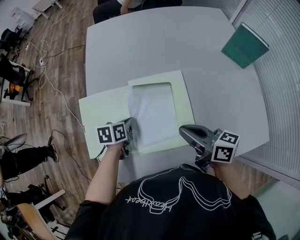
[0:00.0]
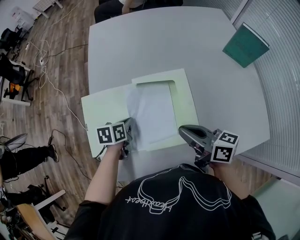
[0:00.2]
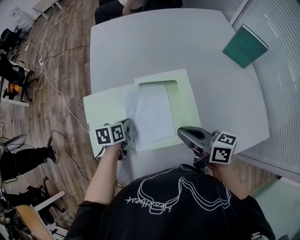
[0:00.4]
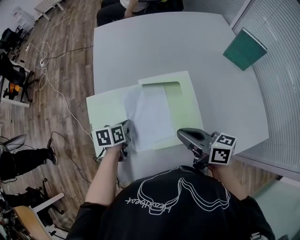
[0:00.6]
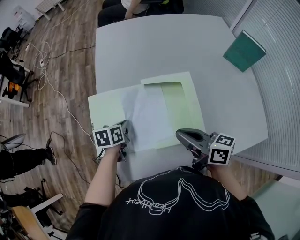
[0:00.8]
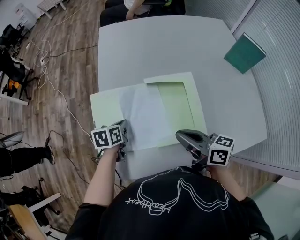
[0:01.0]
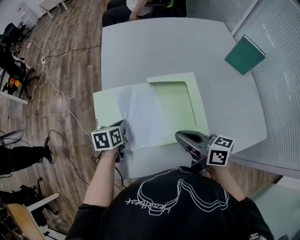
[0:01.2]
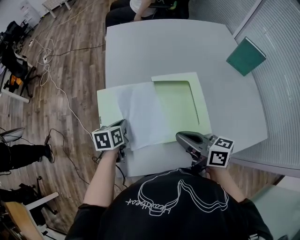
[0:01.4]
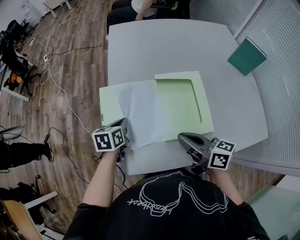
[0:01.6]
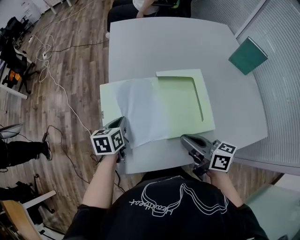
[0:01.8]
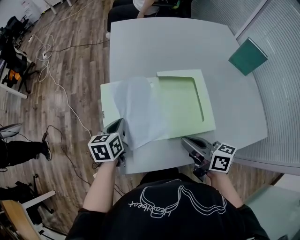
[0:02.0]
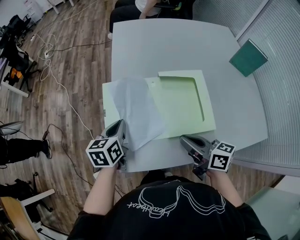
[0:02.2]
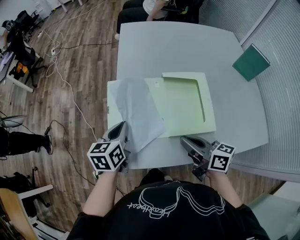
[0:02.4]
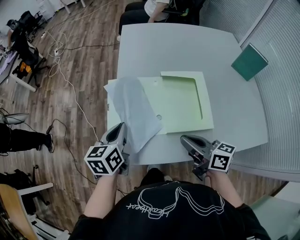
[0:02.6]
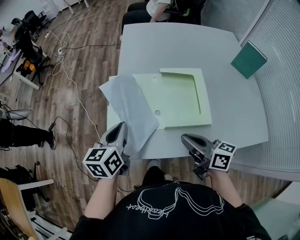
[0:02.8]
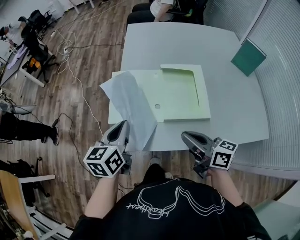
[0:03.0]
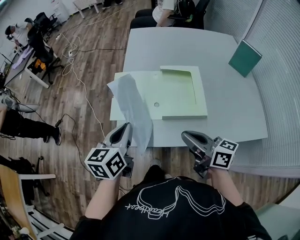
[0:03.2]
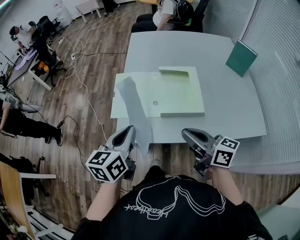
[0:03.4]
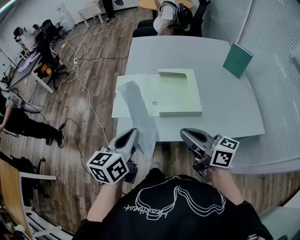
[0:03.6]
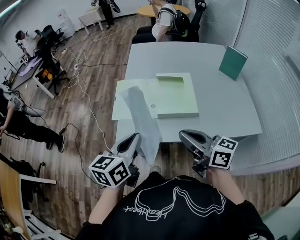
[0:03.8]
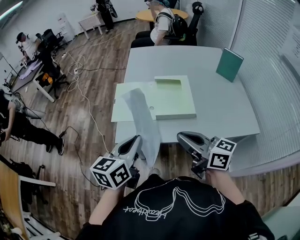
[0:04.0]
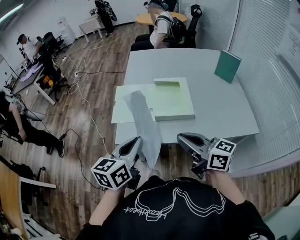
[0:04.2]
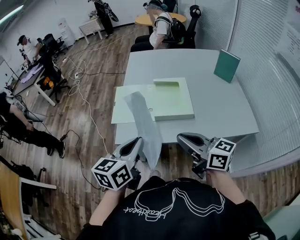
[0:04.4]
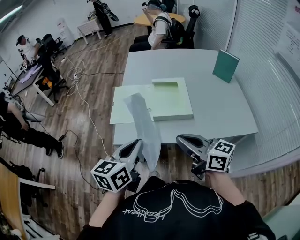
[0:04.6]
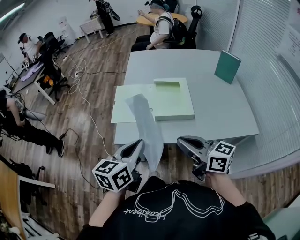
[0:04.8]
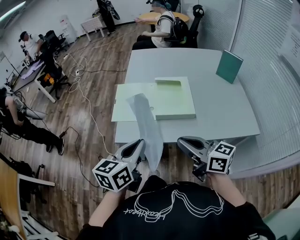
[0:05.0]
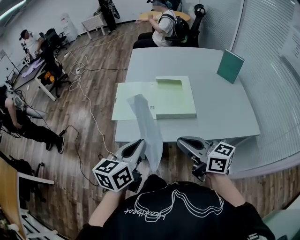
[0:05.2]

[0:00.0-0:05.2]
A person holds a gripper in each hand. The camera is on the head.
0:00.0 to 0:01.8: The left gripper is displaced to the left and upward by approximately 15 cm. Meanwhile the right gripper shifts roughly 15 cm to the left and backward.
0:01.8 to 0:03.4: The left gripper travels backward and upward by approximately 30 cm, and rotates approximately 20 degrees. Meanwhile the right gripper travels backward and upward by about 15 cm.
0:03.4 to 0:05.2: The grippers both shift backward by approximately 10 cm.

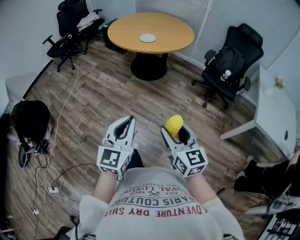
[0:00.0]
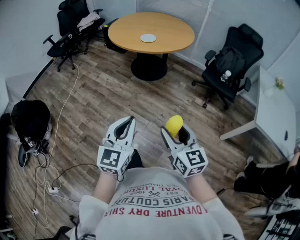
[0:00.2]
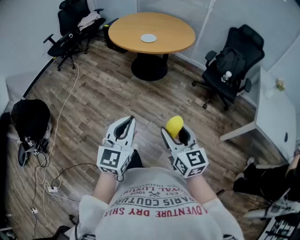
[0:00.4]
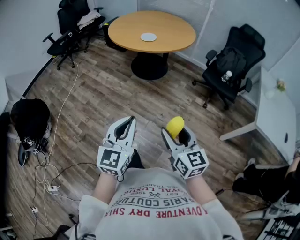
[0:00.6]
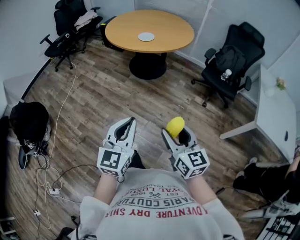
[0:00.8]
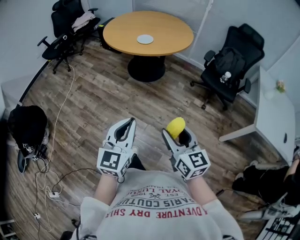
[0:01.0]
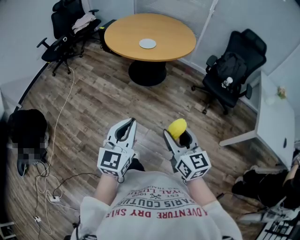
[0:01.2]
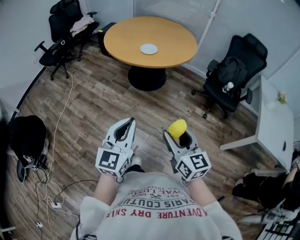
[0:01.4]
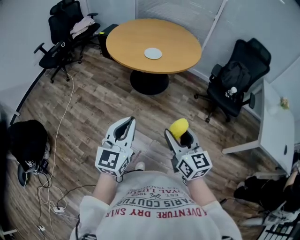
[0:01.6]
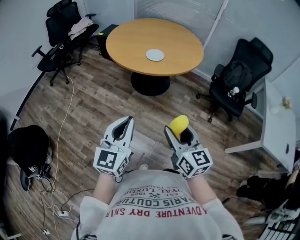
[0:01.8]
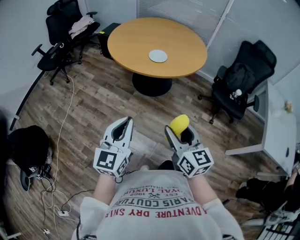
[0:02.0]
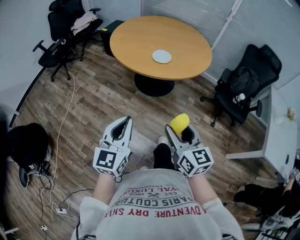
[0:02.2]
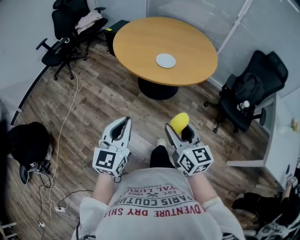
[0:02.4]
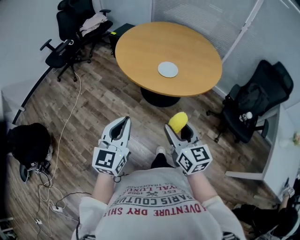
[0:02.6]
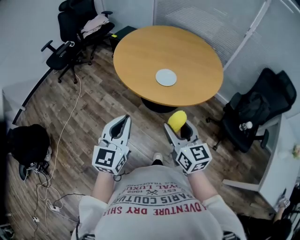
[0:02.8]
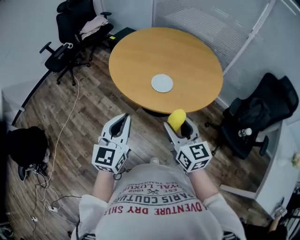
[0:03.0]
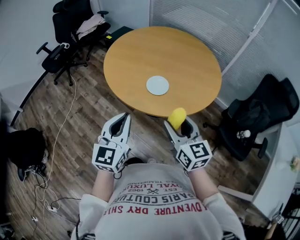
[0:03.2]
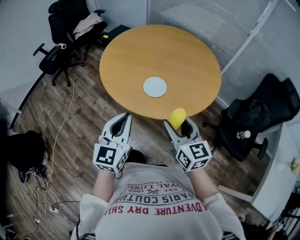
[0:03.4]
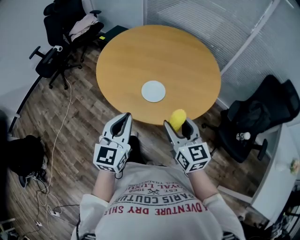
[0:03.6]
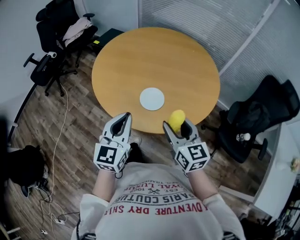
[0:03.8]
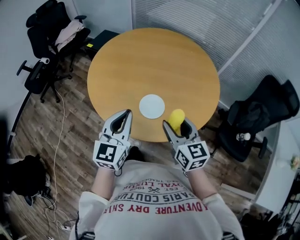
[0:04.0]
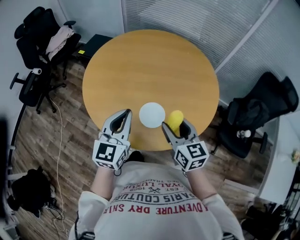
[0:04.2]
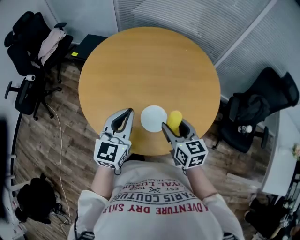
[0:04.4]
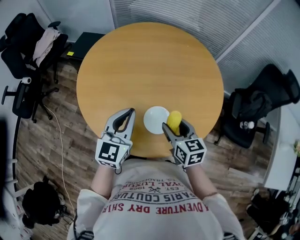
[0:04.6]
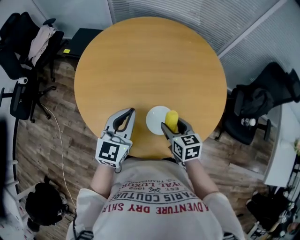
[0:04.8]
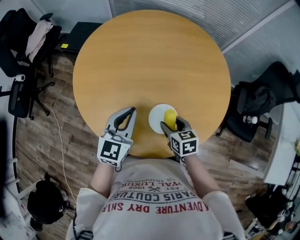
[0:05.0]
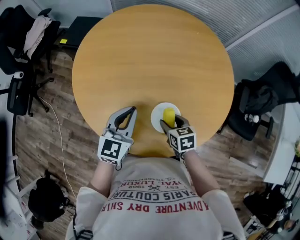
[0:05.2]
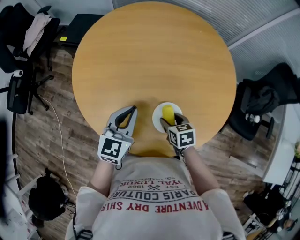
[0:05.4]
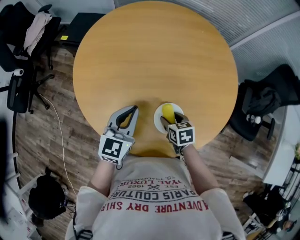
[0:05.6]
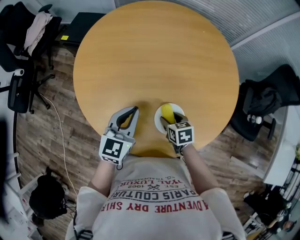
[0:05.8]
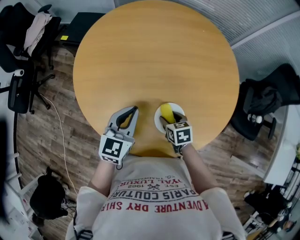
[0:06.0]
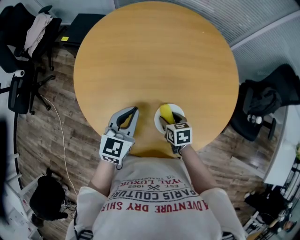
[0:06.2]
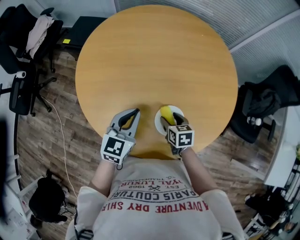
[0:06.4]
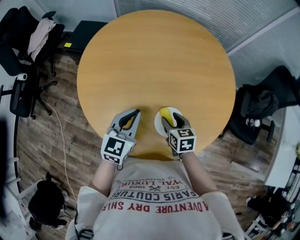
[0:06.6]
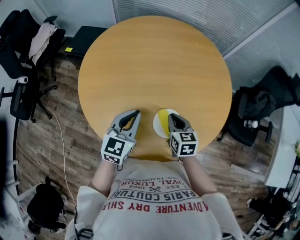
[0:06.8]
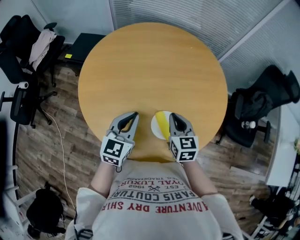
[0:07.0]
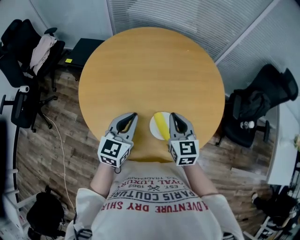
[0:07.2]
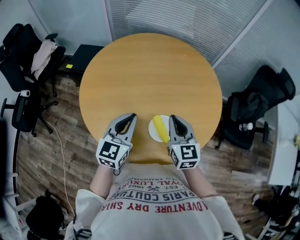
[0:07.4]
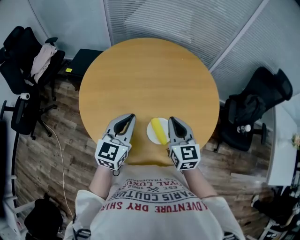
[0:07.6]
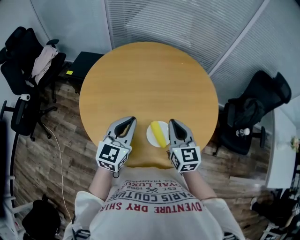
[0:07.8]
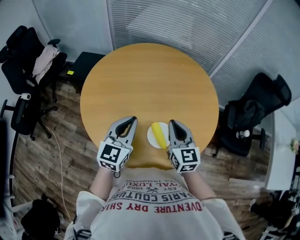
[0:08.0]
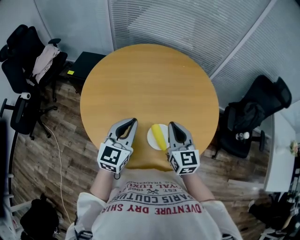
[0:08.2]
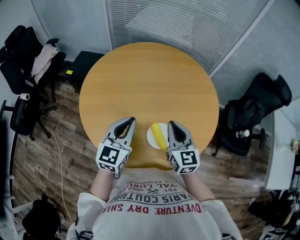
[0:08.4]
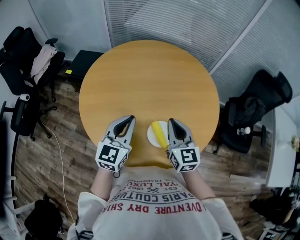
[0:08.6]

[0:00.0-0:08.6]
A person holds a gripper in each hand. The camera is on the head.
0:00.0 to 0:01.4: Both grippers travel together forward, some 15 cm.
0:01.4 to 0:02.8: The grippers both shift forward by approximately 35 cm.
0:02.8 to 0:04.4: Both grippers move forward, some 35 cm. The right gripper swivels approximately 20 degrees.
0:04.4 to 0:05.8: The left gripper shifts approximately 15 cm downward and forward. The right gripper moves downward, roughly 25 cm, and points its fingers roughly 30 degrees further downward.
0:05.8 to 0:07.2: The right gripper shifts about 20 cm upward, angles its fingers upward, by some 40 degrees, and closes. The left gripper heads upward, covering approximately 5 cm.
0:07.2 to 0:08.6: The left gripper heads upward, covering approximately 5 cm.

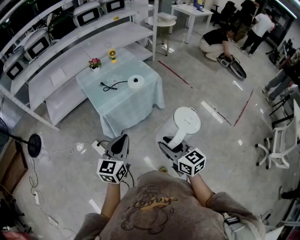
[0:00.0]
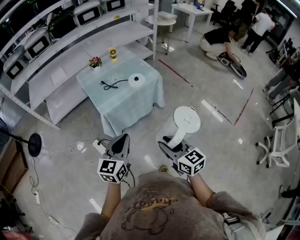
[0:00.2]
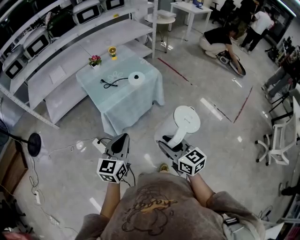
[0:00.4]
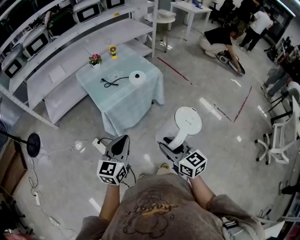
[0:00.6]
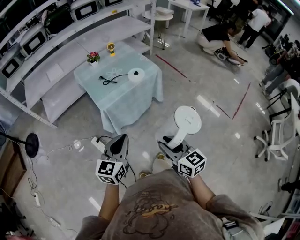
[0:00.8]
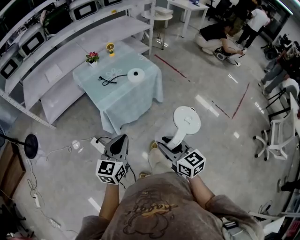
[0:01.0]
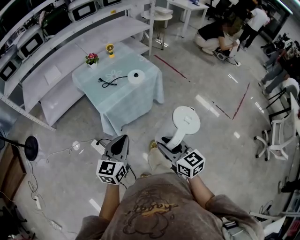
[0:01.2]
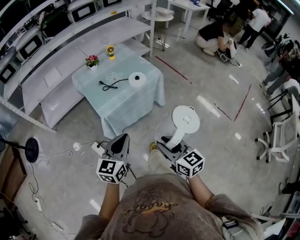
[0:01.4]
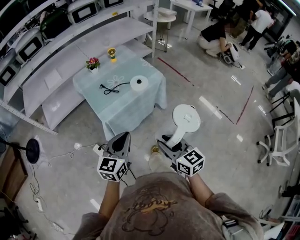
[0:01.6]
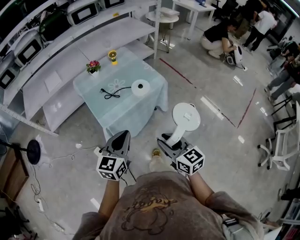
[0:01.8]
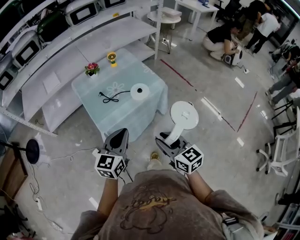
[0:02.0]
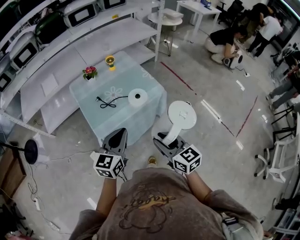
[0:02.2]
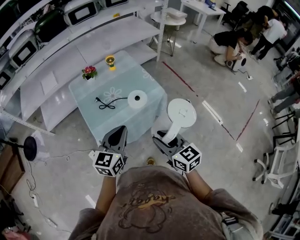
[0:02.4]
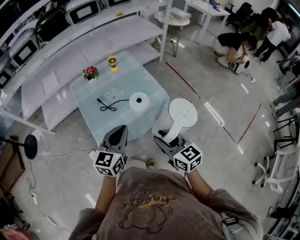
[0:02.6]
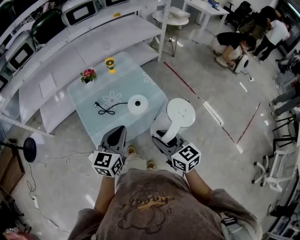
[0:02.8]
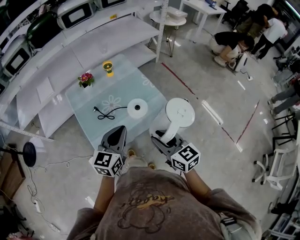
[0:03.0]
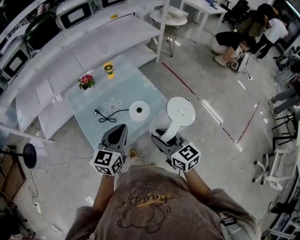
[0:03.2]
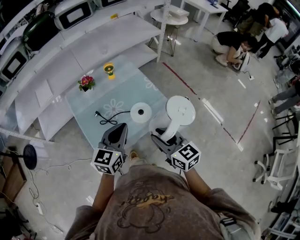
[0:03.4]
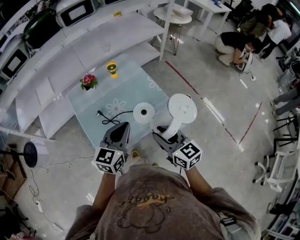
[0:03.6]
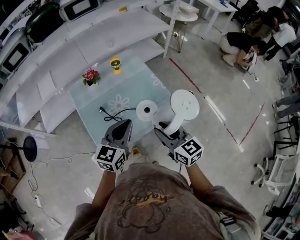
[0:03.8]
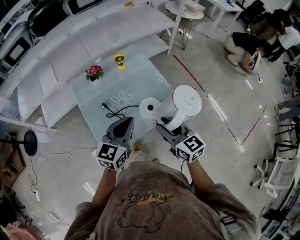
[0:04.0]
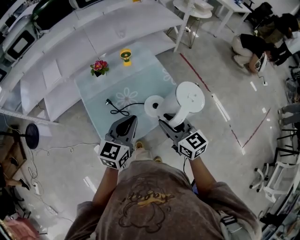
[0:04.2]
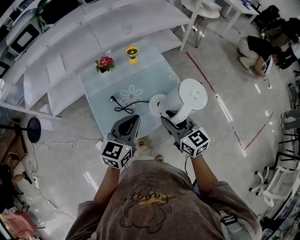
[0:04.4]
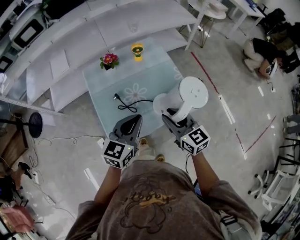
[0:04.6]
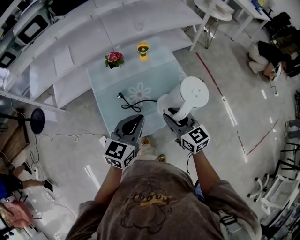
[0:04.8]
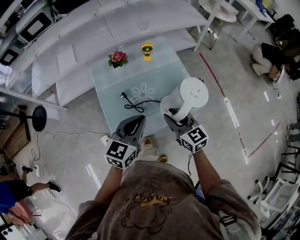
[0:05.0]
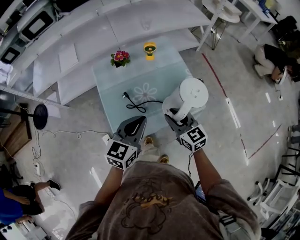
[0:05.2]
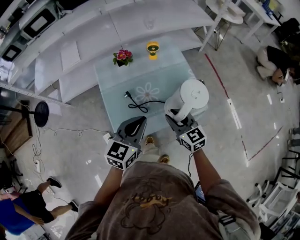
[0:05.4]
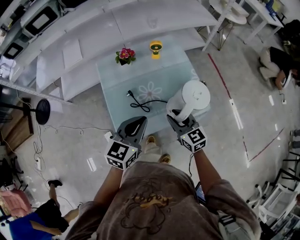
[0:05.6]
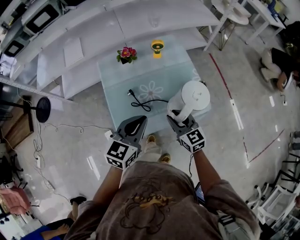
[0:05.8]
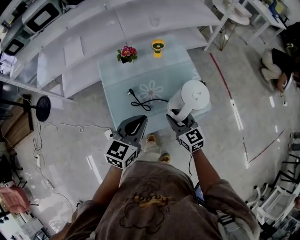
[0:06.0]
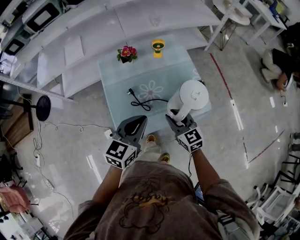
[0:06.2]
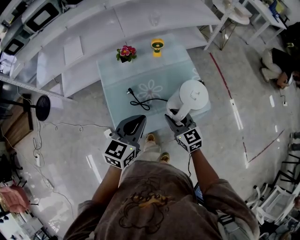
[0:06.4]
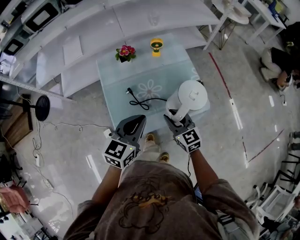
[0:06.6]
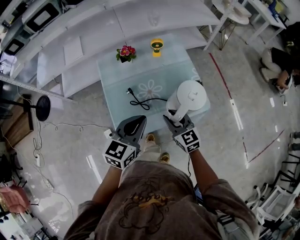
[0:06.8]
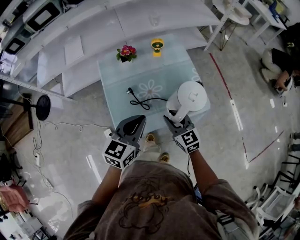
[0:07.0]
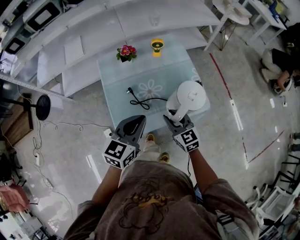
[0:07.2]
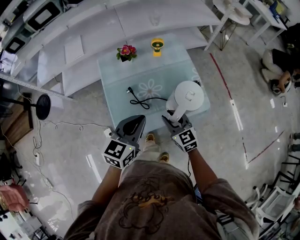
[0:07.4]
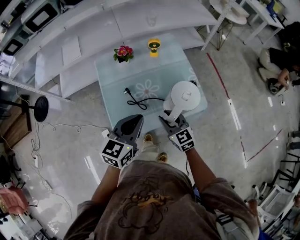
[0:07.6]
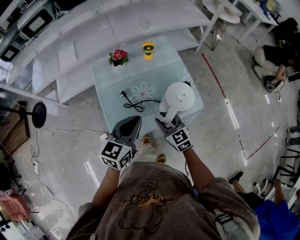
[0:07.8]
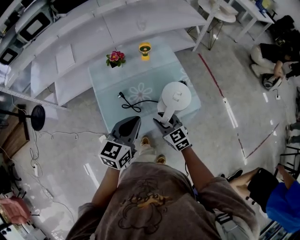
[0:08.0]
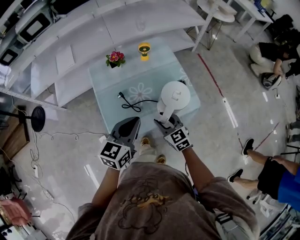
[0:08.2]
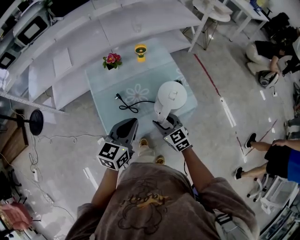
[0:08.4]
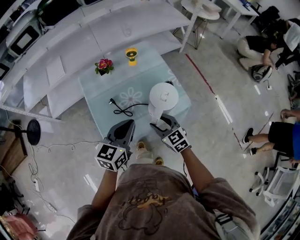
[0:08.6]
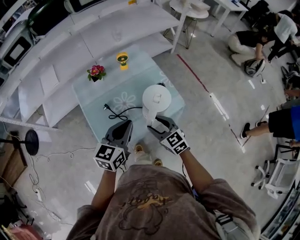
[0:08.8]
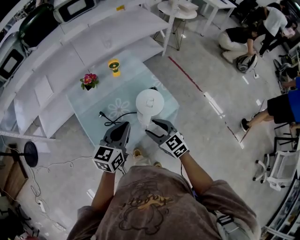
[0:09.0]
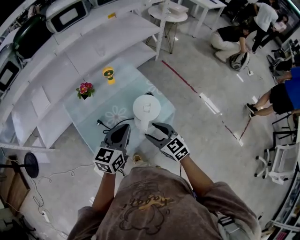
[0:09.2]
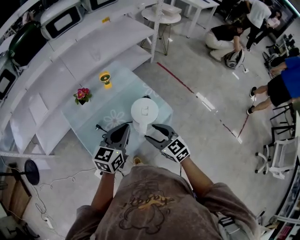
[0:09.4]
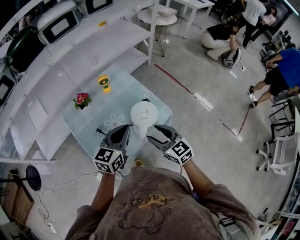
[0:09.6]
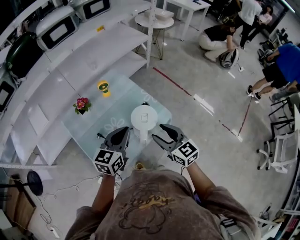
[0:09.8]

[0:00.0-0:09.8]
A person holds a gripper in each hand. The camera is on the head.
0:00.0 to 0:01.4: The left gripper ends up roughly 5 cm from where it was; the right gripper goes roughly 5 cm to the left.
0:01.4 to 0:02.8: The two grippers go about 30 cm forward.
0:02.8 to 0:04.2: Both grippers travel together forward, about 15 cm.
0:04.2 to 0:05.6: The right gripper heads downward, forward and to the left, covering some 15 cm. Meanwhile the left gripper goes roughly 5 cm to the left.
0:05.6 to 0:08.4: The grippers make only small movements.
0:08.4 to 0:09.8: The right gripper shifts about 15 cm upward and to the right, and turns by some 20 degrees; the left gripper goes roughly 10 cm to the right and forward.
